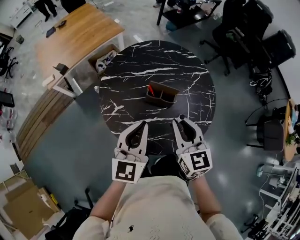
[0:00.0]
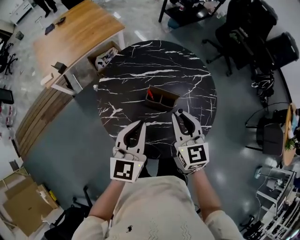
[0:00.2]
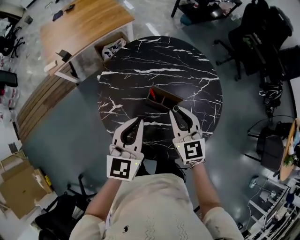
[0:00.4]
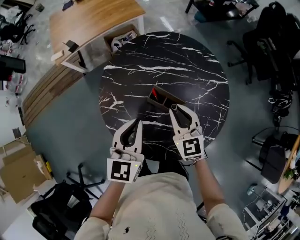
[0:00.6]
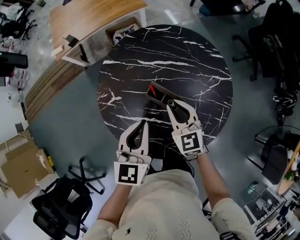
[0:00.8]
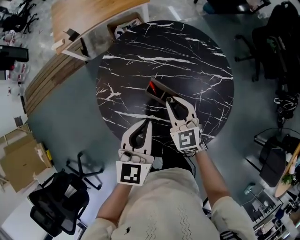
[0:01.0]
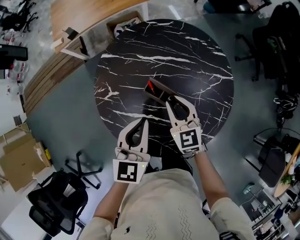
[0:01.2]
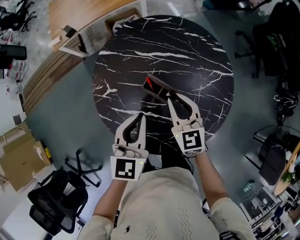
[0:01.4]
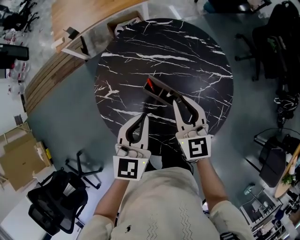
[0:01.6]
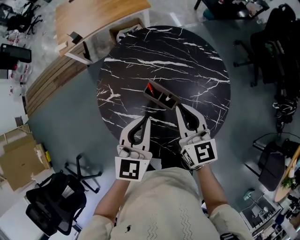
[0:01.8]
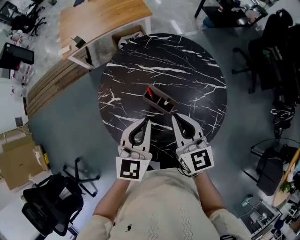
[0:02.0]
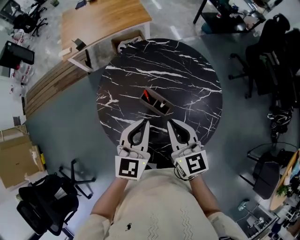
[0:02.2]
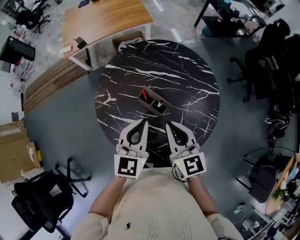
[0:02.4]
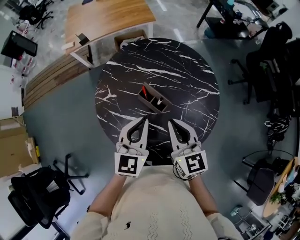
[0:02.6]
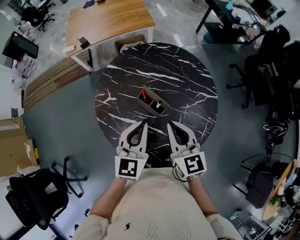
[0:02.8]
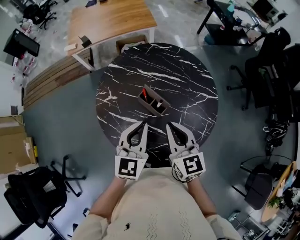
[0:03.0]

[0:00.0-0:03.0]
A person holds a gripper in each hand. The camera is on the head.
0.0 to 1.6 s: The right gripper moves forward, downward and to the right, approximately 20 cm. The left gripper is displaced to the right, downward and forward by approximately 15 cm, and swivels about 20 degrees.
1.6 to 3.0 s: The left gripper moves backward, roughly 5 cm. Meanwhile the right gripper shifts approximately 10 cm backward and upward.

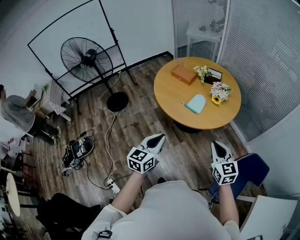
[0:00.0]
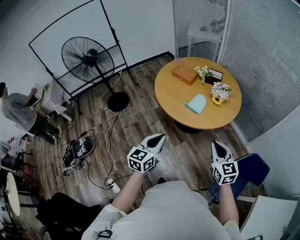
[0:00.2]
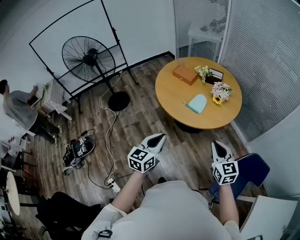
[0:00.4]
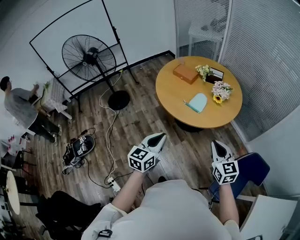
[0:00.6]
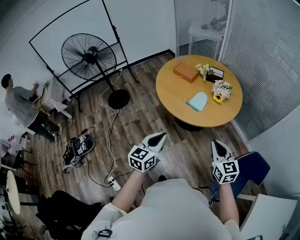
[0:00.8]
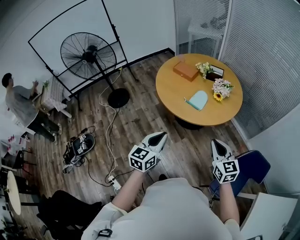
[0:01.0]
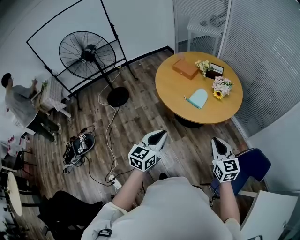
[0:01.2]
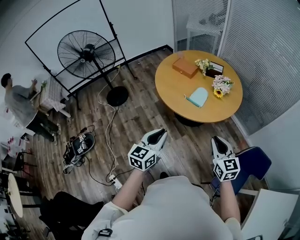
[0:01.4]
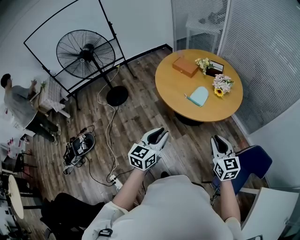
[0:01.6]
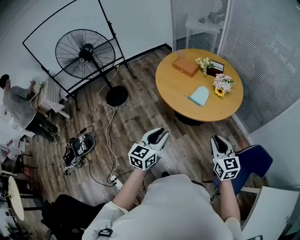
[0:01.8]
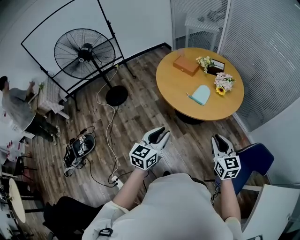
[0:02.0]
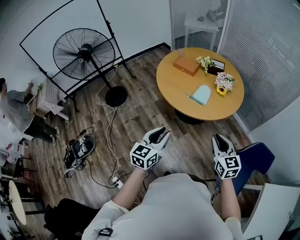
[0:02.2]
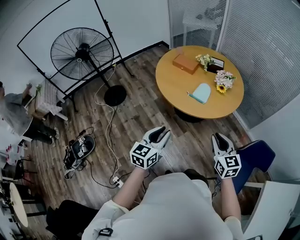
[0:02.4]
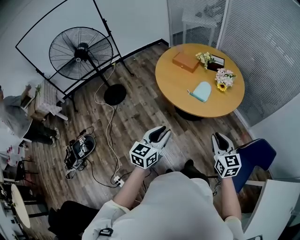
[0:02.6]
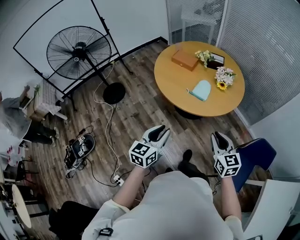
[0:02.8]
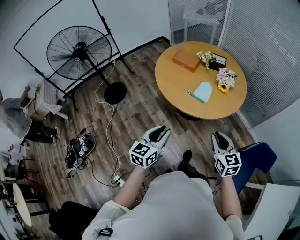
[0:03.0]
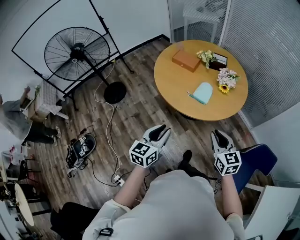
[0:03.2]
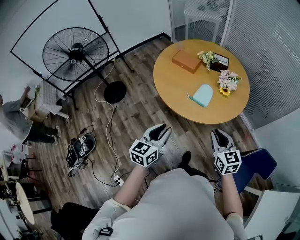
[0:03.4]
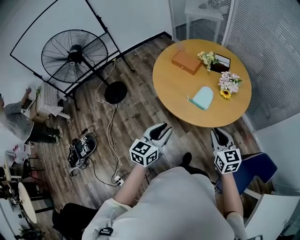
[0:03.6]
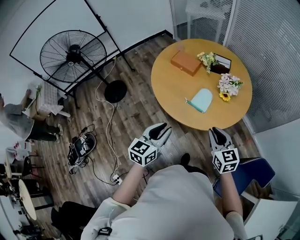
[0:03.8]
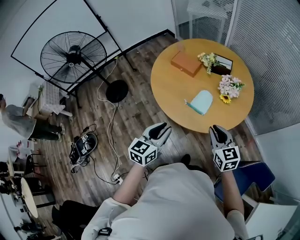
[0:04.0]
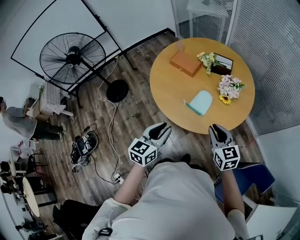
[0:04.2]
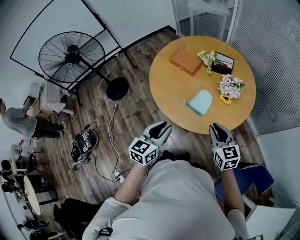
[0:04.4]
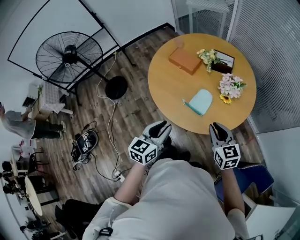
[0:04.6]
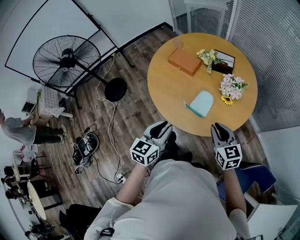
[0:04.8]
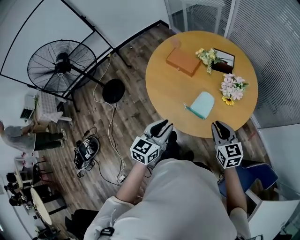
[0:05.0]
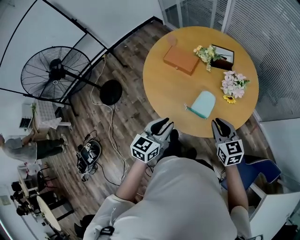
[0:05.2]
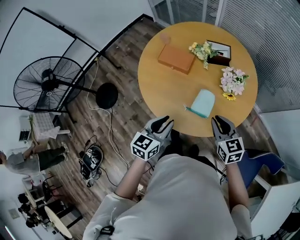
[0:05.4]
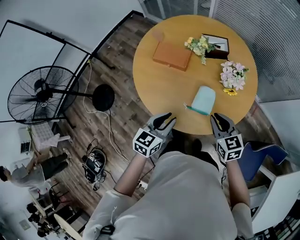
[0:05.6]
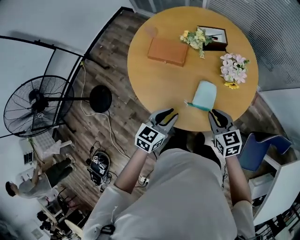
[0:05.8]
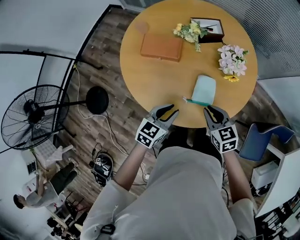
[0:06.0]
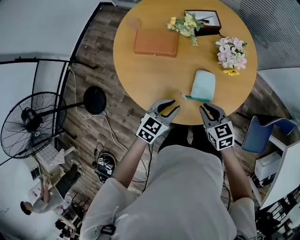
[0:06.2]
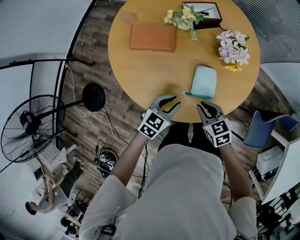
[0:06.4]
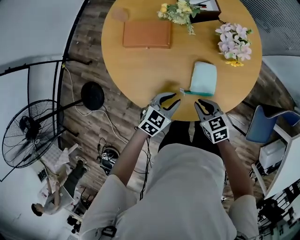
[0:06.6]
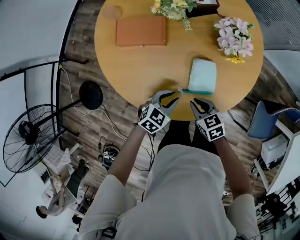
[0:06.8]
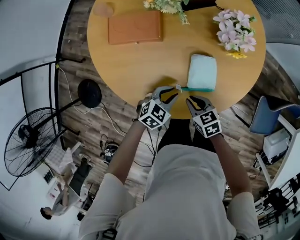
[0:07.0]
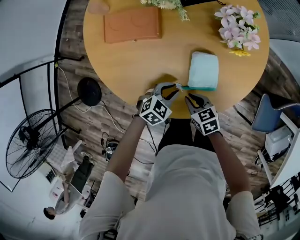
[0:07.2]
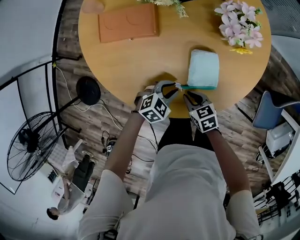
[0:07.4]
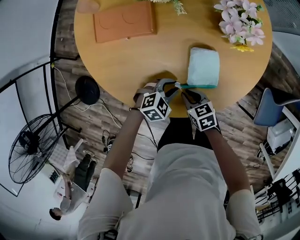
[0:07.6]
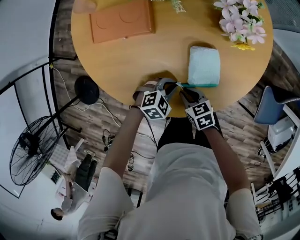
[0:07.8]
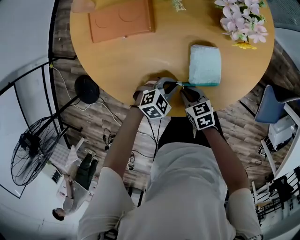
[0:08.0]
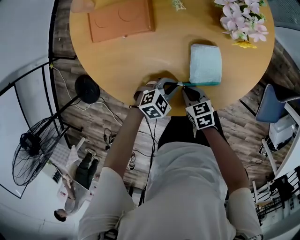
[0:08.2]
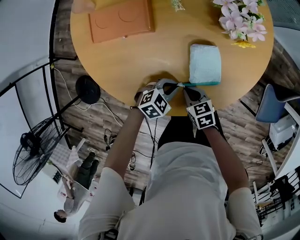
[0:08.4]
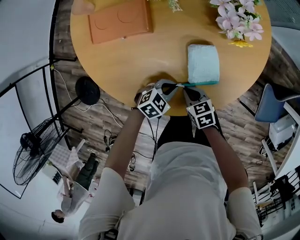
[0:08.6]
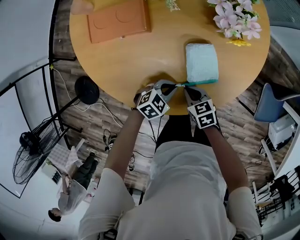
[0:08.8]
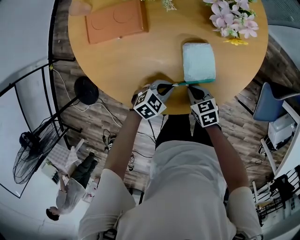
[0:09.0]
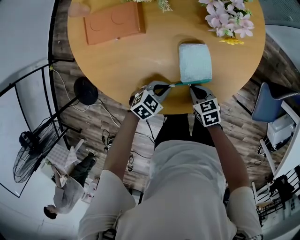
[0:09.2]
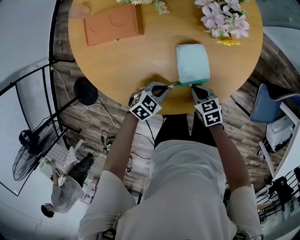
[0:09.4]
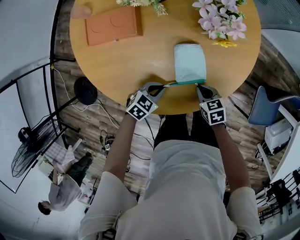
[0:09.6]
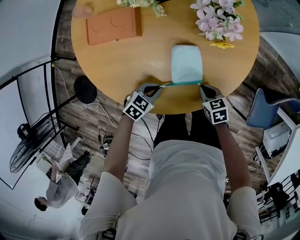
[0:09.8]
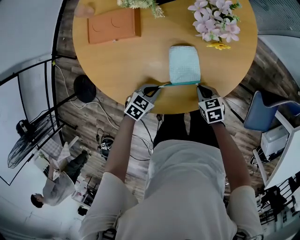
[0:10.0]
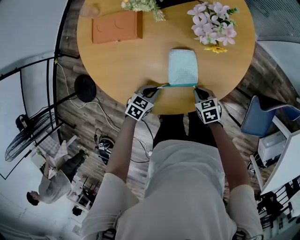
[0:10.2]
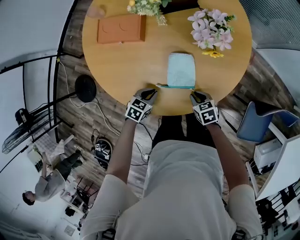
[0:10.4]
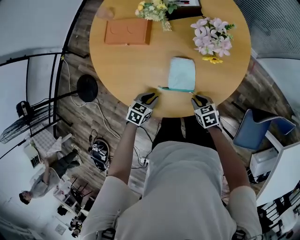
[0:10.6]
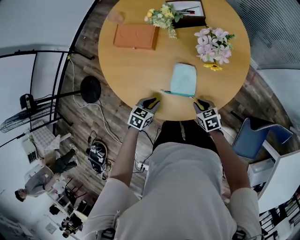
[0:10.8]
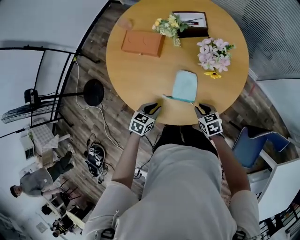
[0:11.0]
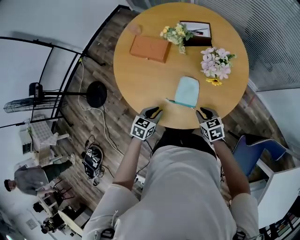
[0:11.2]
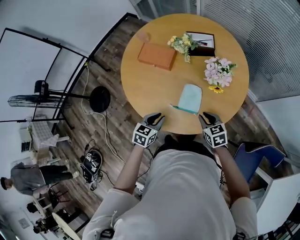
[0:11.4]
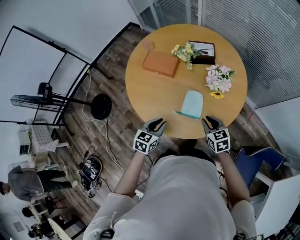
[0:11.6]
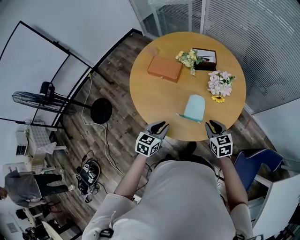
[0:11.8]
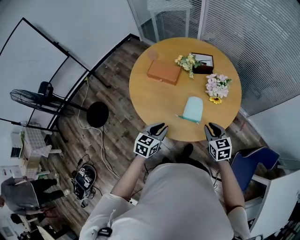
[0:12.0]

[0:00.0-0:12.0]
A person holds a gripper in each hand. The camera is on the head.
0.0 to 1.6 s: There are only small adjustments of the grippers.
1.6 to 3.0 s: Both grippers travel together forward, approximately 5 cm.
3.0 to 4.4 s: The left gripper shifts some 25 cm forward and to the right; the right gripper travels forward by roughly 25 cm.
4.4 to 6.0 s: The right gripper changes place by roughly 25 cm, and rotates about 30 degrees. Meanwhile the left gripper moves some 30 cm, and changes its angle by approximately 40 degrees.
6.0 to 7.6 s: Both grippers move downward, about 25 cm. The left gripper turns by about 50 degrees, while the right gripper turns by roughly 20 degrees.
7.6 to 9.0 s: The left gripper closes up.
9.0 to 10.4 s: The left gripper rotates some 30 degrees, while the right gripper ends up some 10 cm from where it was.
10.4 to 12.0 s: The grippers both shift upward by roughly 30 cm. The left gripper turns by some 30 degrees; the right gripper changes its angle by approximately 30 degrees.

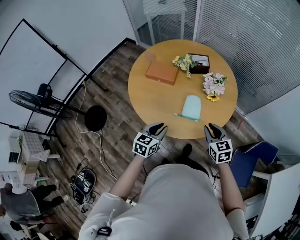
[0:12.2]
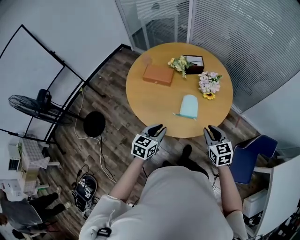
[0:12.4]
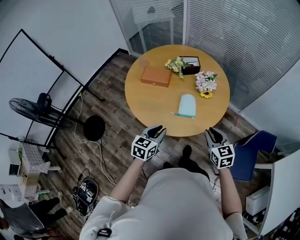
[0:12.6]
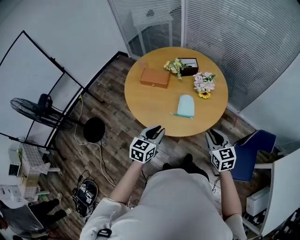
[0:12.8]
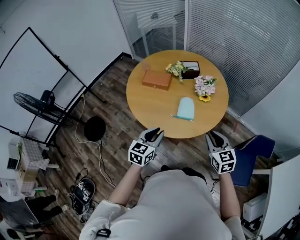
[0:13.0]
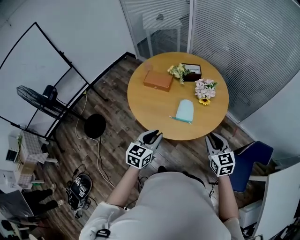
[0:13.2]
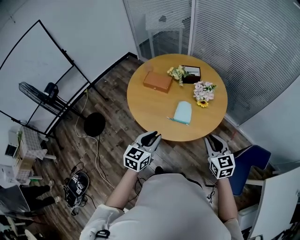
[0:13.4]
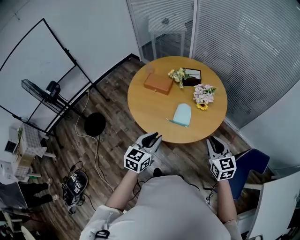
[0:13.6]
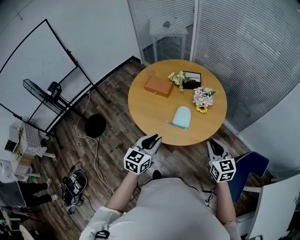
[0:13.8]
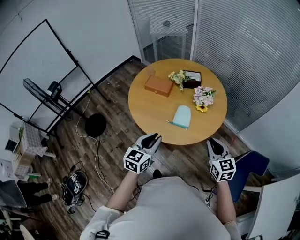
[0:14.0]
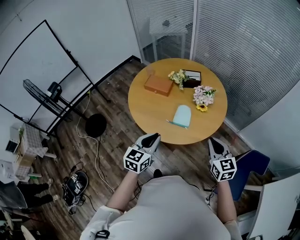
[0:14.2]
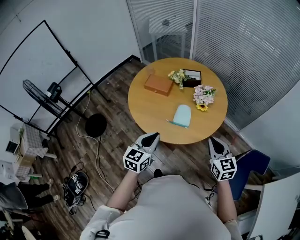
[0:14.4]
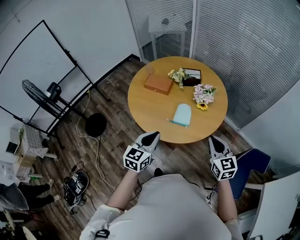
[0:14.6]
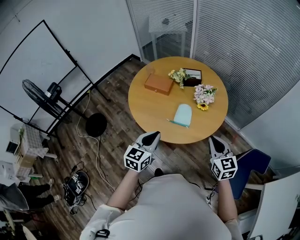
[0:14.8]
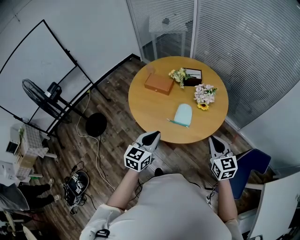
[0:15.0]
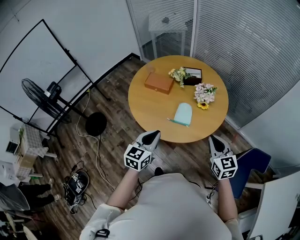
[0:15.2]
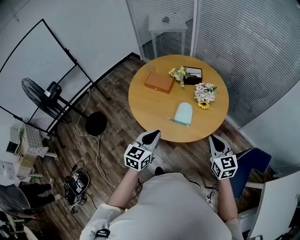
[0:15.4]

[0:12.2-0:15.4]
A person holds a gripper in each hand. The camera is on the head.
12.2 to 13.8 s: The grippers both shift upward, backward and to the right by about 20 cm.
13.8 to 15.4 s: The grippers move only a little.

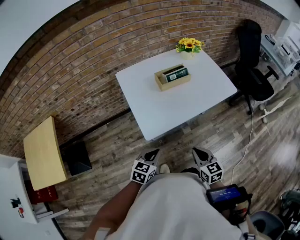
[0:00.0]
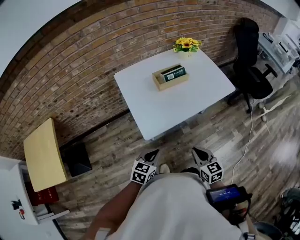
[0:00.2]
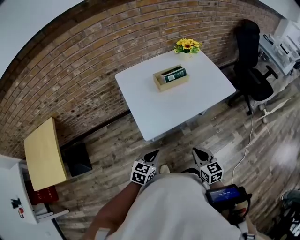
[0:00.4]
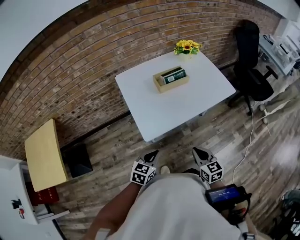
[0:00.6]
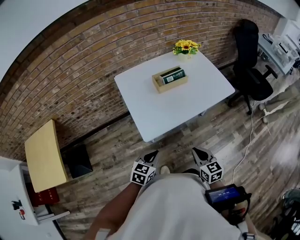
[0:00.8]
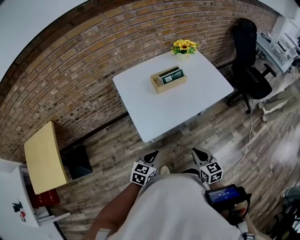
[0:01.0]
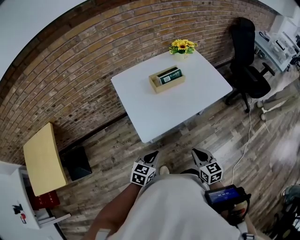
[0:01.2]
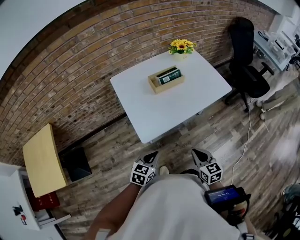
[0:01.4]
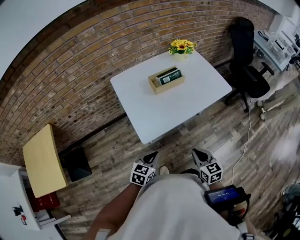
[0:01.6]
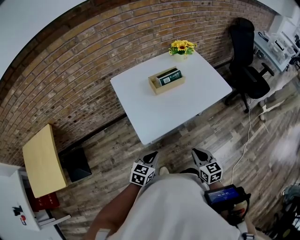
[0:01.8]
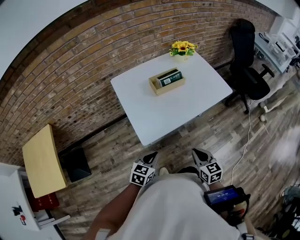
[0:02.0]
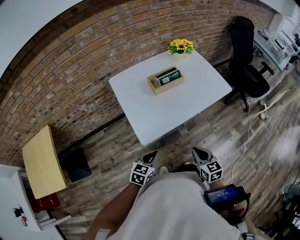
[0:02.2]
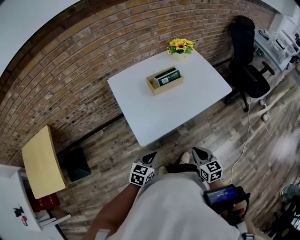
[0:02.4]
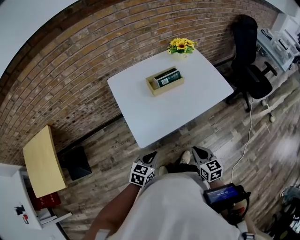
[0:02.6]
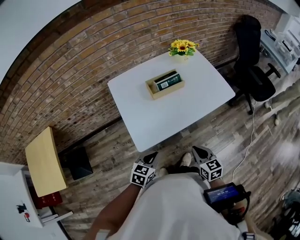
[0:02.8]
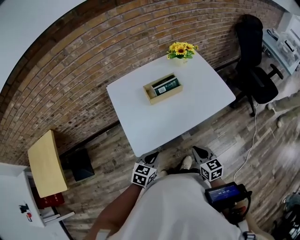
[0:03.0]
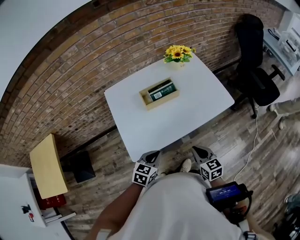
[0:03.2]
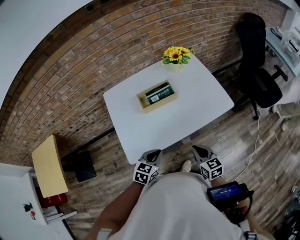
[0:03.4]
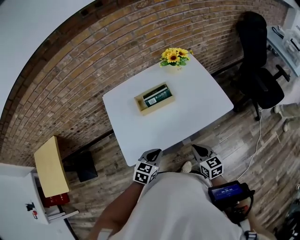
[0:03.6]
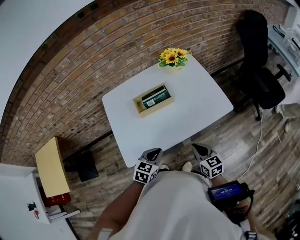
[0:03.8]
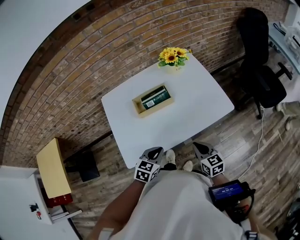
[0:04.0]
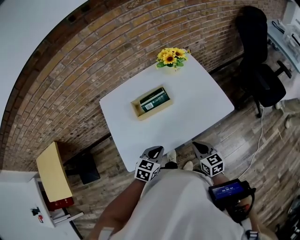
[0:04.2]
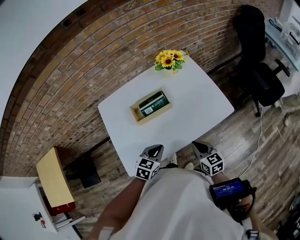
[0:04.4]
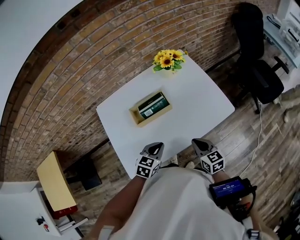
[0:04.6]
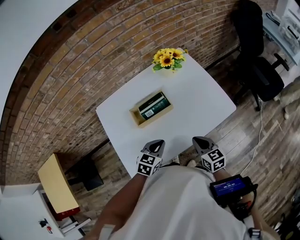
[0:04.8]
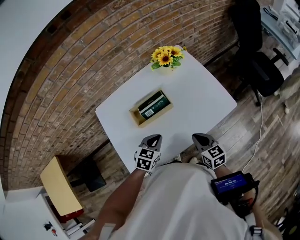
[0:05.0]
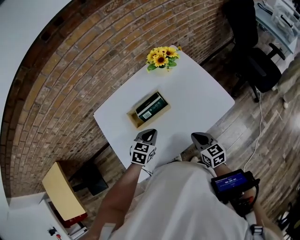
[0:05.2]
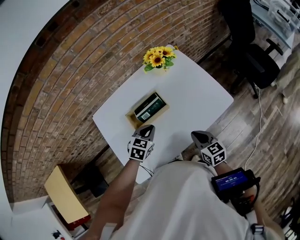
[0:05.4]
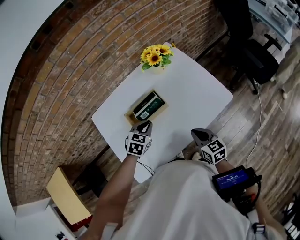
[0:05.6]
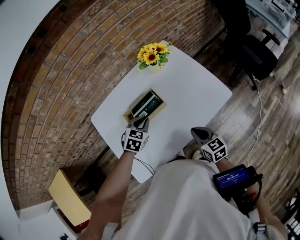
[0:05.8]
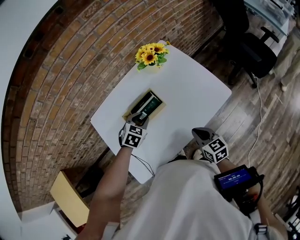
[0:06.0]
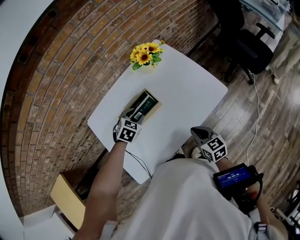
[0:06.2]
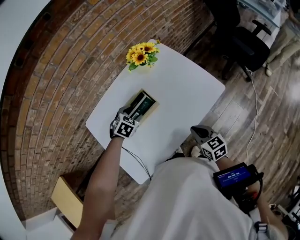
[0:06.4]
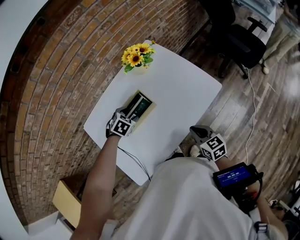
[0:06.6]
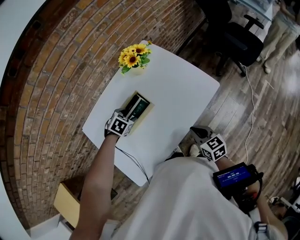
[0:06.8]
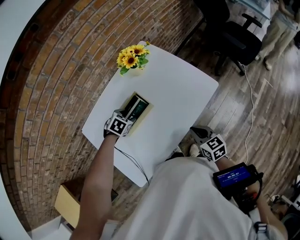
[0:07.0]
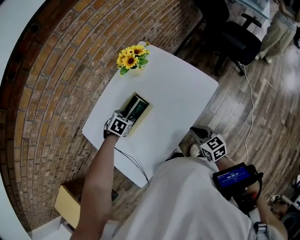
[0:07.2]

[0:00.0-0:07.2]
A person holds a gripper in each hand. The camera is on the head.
0.0 to 1.4 s: The grippers move only a little.
1.4 to 2.8 s: Both grippers move forward, approximately 5 cm.
2.8 to 4.4 s: Both grippers travel together forward and to the right, approximately 20 cm.
4.4 to 5.8 s: The left gripper goes some 15 cm forward, and swivels about 20 degrees.
5.8 to 7.2 s: The left gripper heads forward, covering about 5 cm, swivels some 30 degrees, and opens up.
